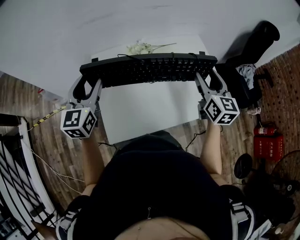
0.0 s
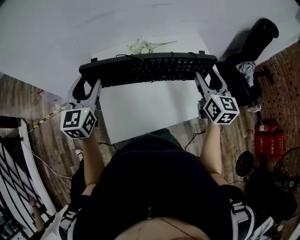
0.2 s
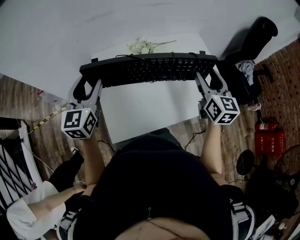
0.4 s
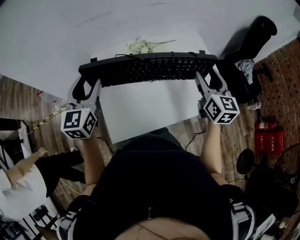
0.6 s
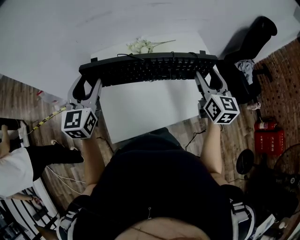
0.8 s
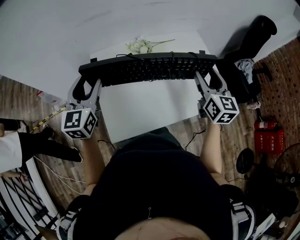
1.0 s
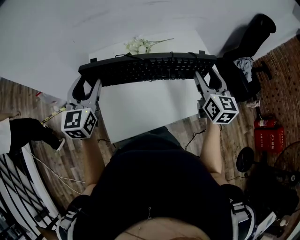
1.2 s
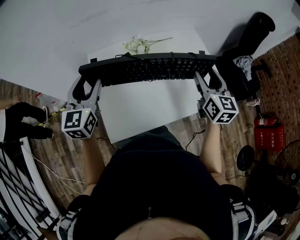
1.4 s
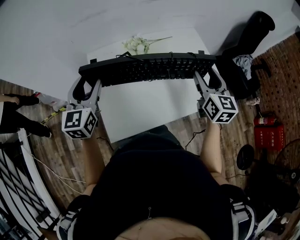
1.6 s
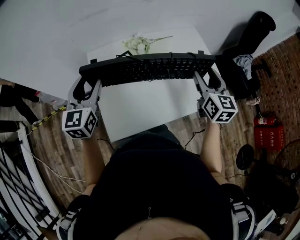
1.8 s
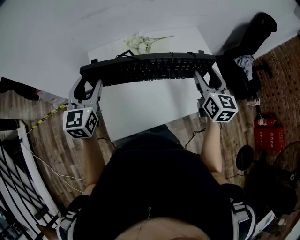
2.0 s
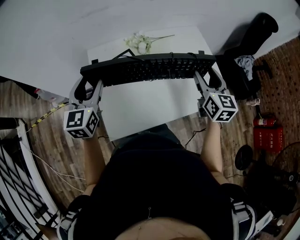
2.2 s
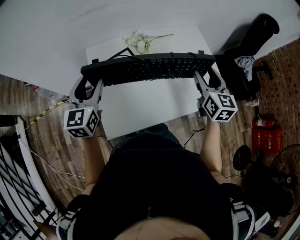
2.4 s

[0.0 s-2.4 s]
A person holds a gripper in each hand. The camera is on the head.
0.0 to 1.2 s: Both grippers stay about where they are.
1.2 to 2.4 s: The grippers make only small movements.

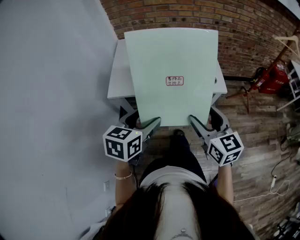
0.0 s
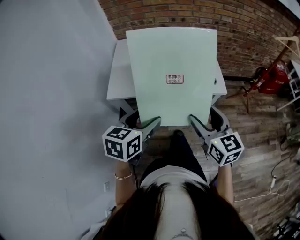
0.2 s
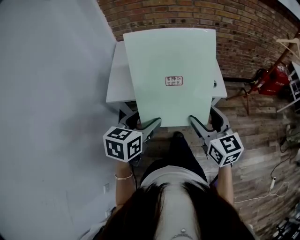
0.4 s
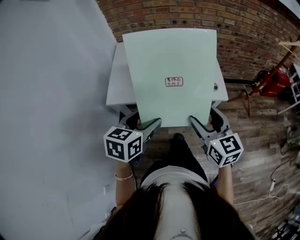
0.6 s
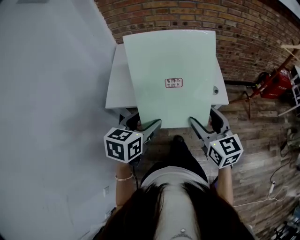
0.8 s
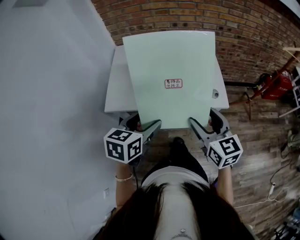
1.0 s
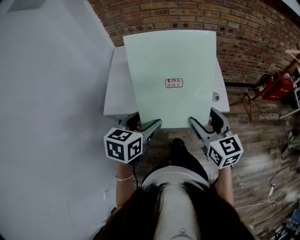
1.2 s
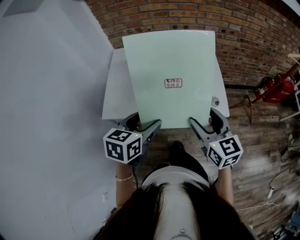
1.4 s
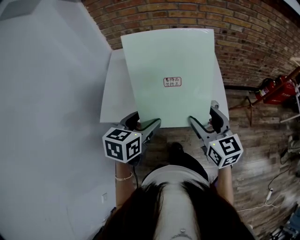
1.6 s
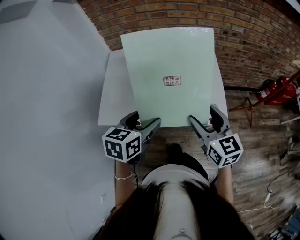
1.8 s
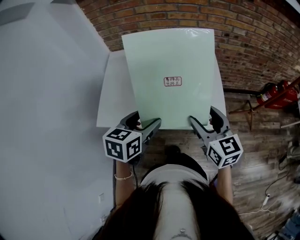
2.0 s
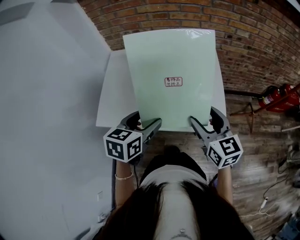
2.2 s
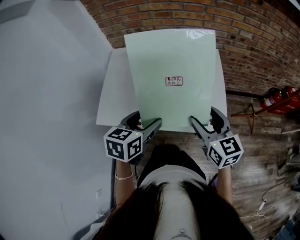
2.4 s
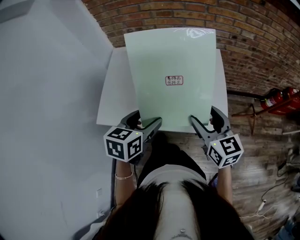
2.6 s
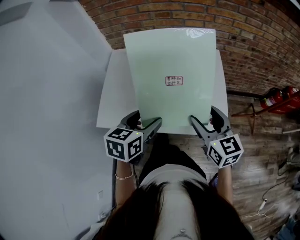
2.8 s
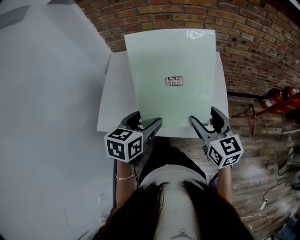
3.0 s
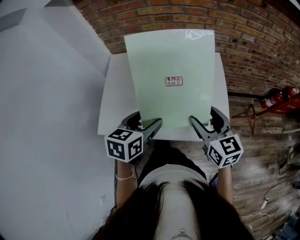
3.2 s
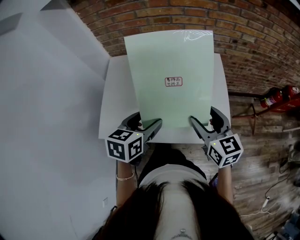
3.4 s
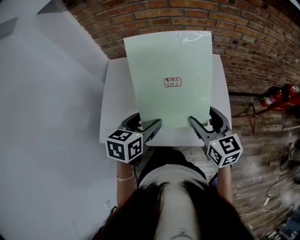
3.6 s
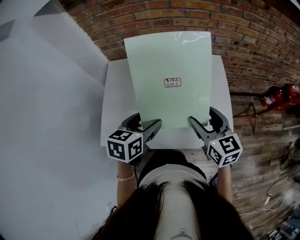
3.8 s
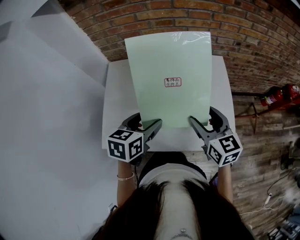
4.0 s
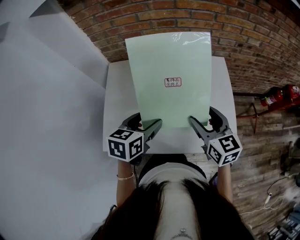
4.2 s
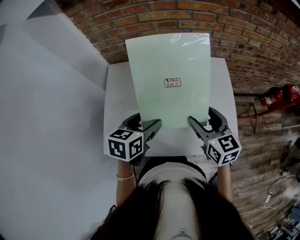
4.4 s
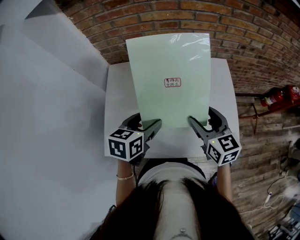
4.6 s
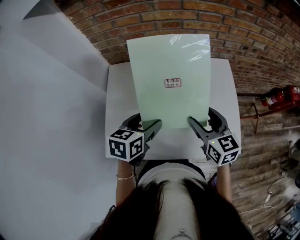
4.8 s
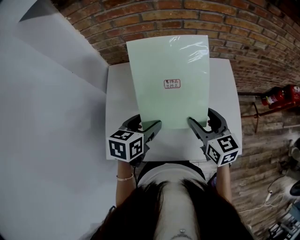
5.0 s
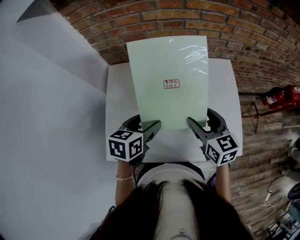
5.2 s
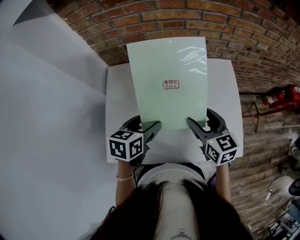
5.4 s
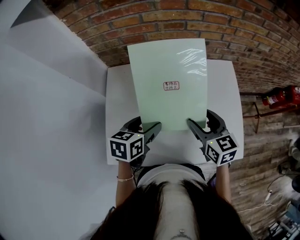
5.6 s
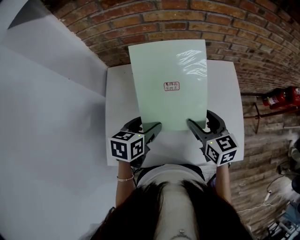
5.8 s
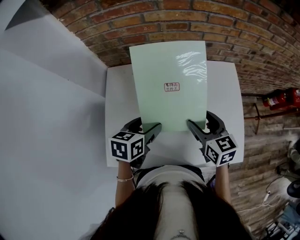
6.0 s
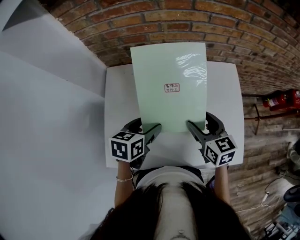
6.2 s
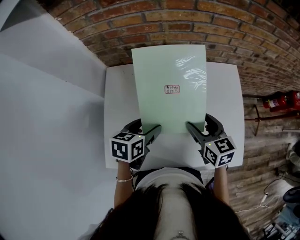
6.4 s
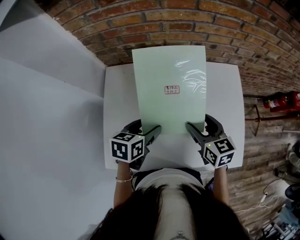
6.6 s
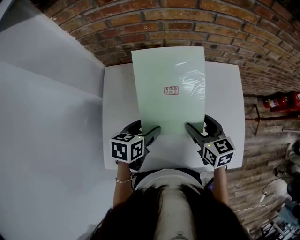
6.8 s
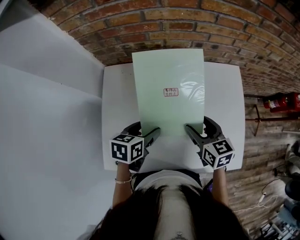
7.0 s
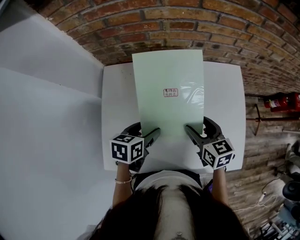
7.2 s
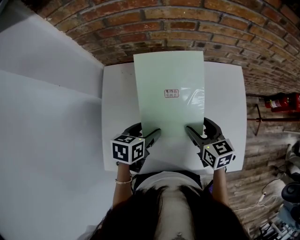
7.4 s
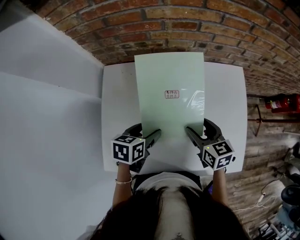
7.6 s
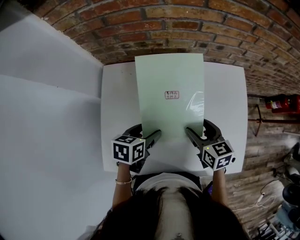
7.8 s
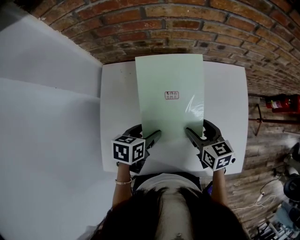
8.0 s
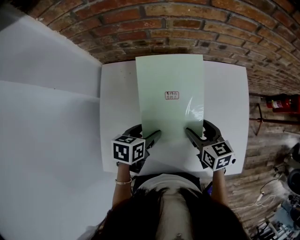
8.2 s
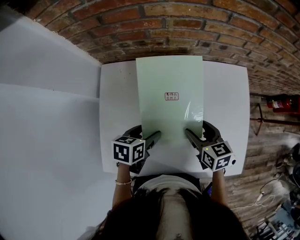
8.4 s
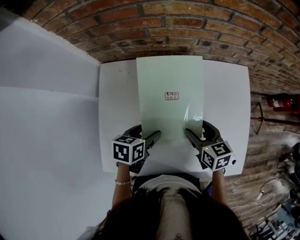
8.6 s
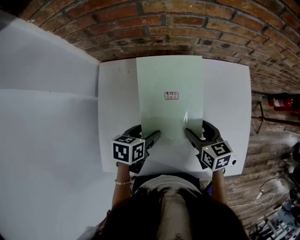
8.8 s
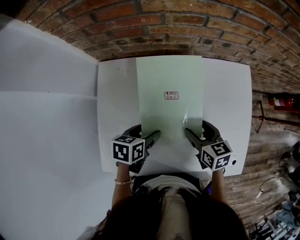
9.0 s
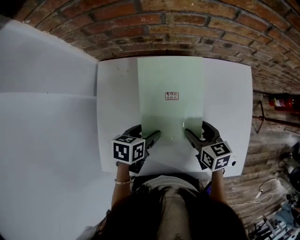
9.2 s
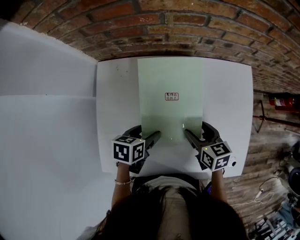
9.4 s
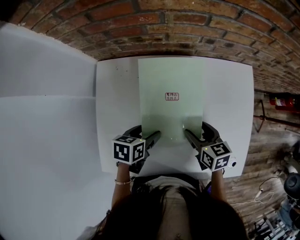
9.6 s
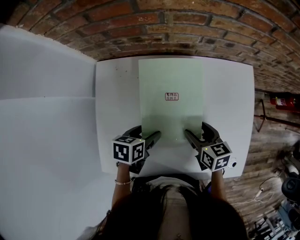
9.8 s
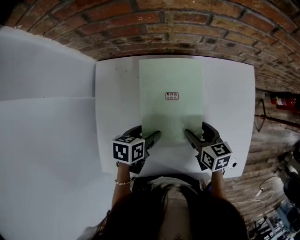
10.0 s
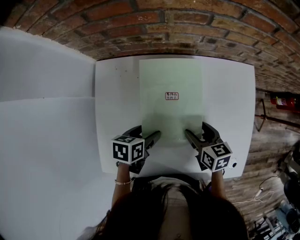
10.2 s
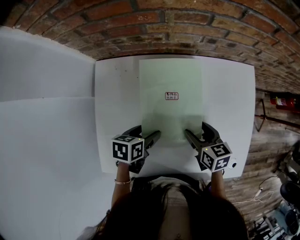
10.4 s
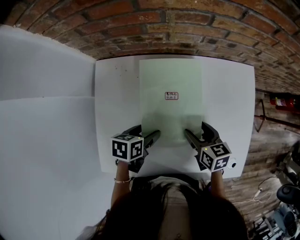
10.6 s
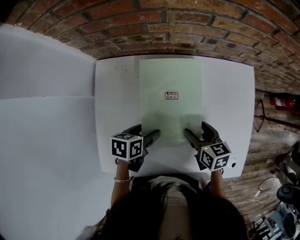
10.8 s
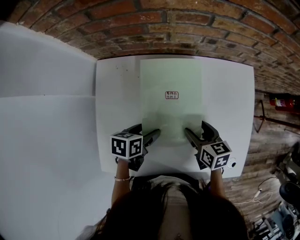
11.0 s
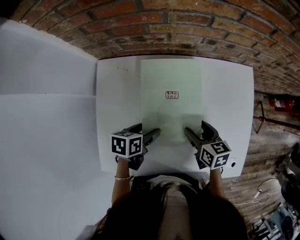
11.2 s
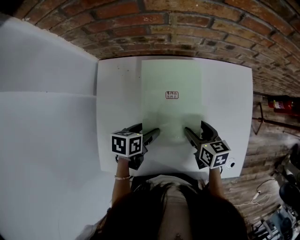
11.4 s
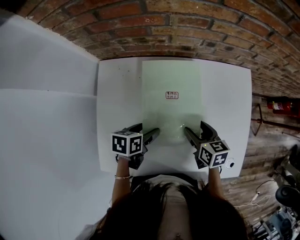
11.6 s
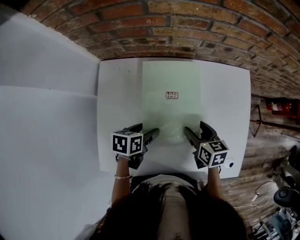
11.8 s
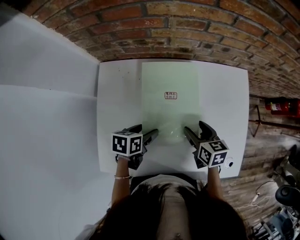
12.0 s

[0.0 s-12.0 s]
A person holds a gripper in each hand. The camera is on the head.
0.0 to 1.6 s: Both grippers move forward, roughly 20 cm.
1.6 to 3.0 s: Both grippers move forward, approximately 10 cm.
3.0 to 4.4 s: Both grippers travel together forward and to the left, approximately 15 cm.
4.4 to 6.0 s: Both grippers travel together forward and downward, approximately 10 cm.
6.0 to 7.6 s: The two grippers go roughly 5 cm downward.
7.6 to 9.0 s: The grippers stay close to where they were, moving slightly.
9.0 to 10.4 s: There are only small adjustments of the grippers.
10.4 to 12.0 s: Both grippers stay about where they are.

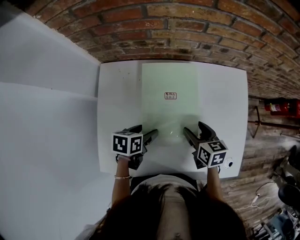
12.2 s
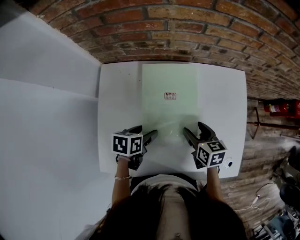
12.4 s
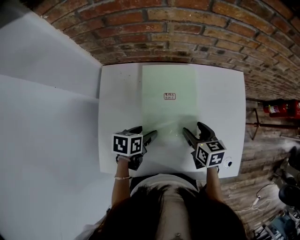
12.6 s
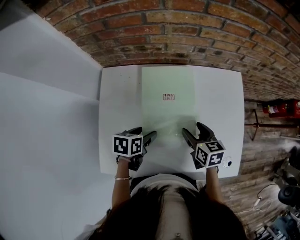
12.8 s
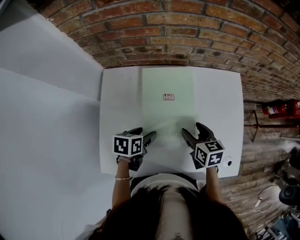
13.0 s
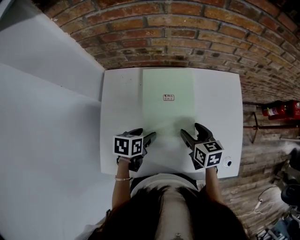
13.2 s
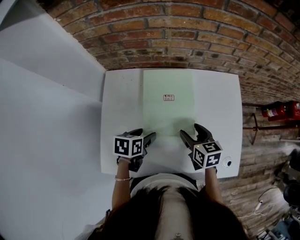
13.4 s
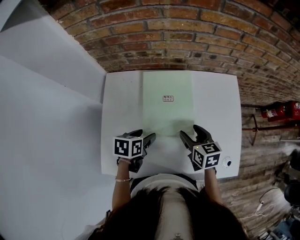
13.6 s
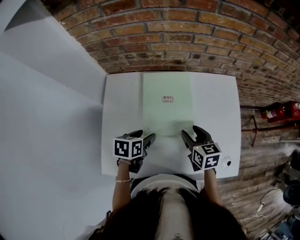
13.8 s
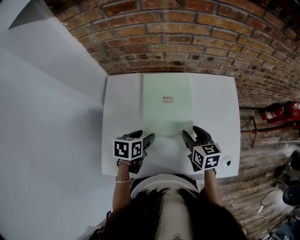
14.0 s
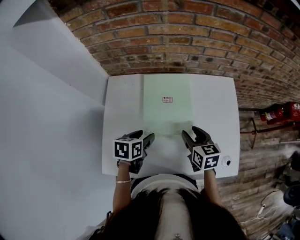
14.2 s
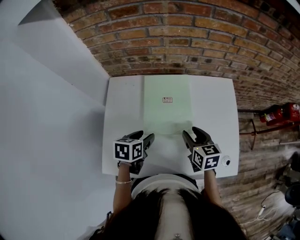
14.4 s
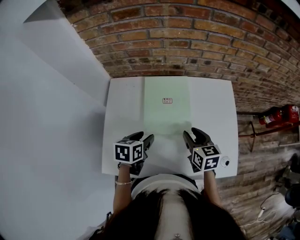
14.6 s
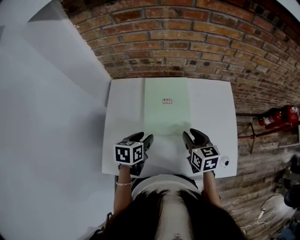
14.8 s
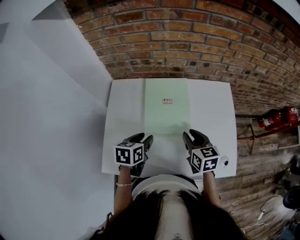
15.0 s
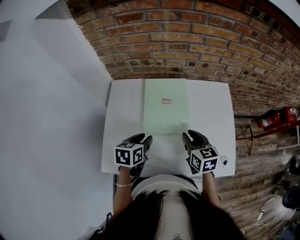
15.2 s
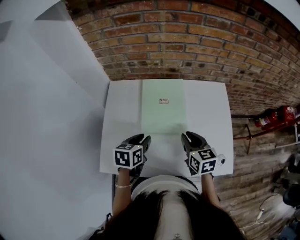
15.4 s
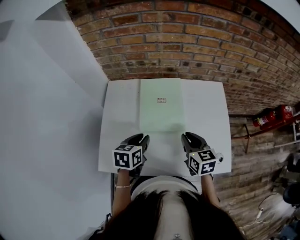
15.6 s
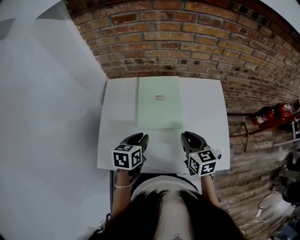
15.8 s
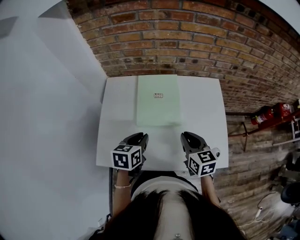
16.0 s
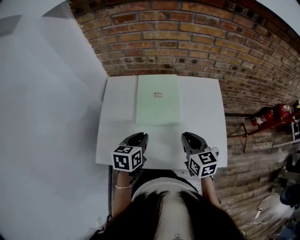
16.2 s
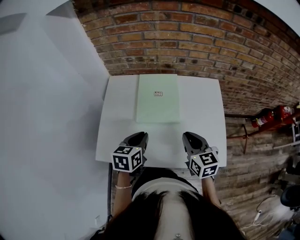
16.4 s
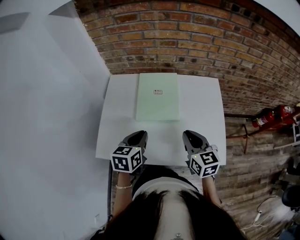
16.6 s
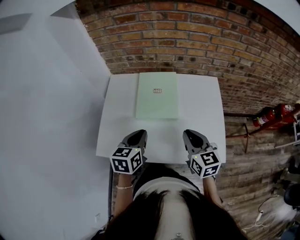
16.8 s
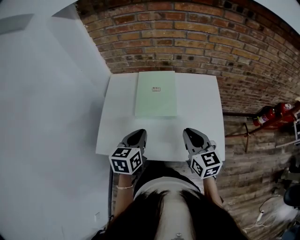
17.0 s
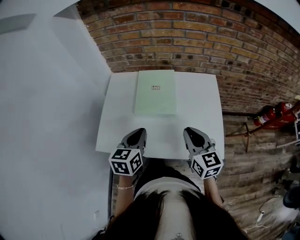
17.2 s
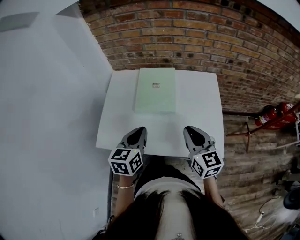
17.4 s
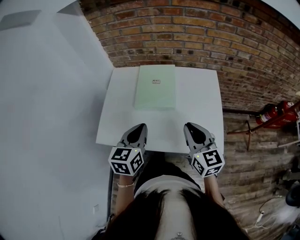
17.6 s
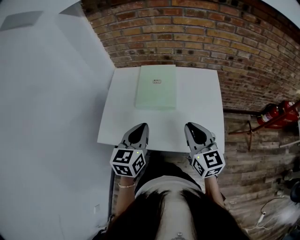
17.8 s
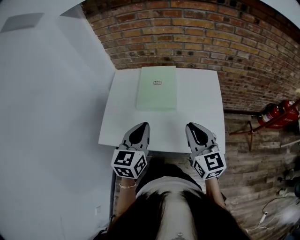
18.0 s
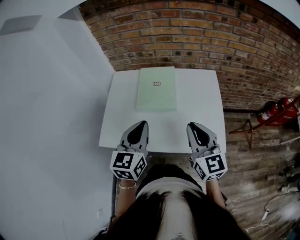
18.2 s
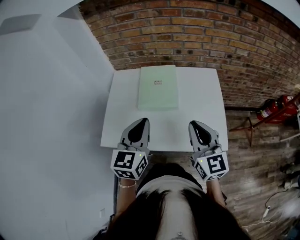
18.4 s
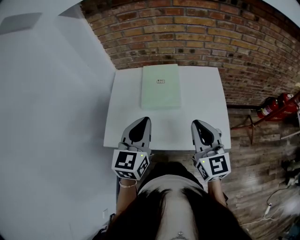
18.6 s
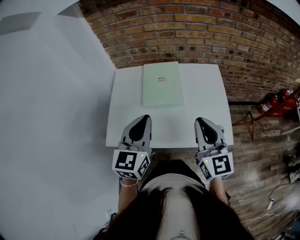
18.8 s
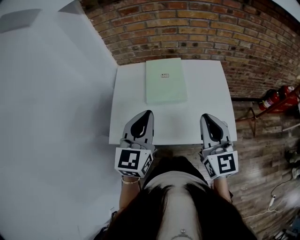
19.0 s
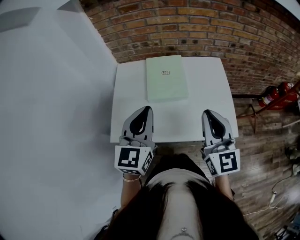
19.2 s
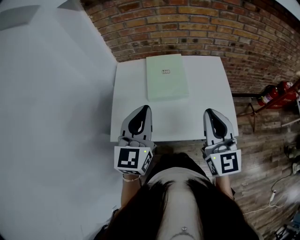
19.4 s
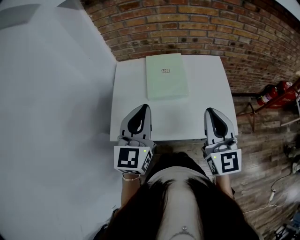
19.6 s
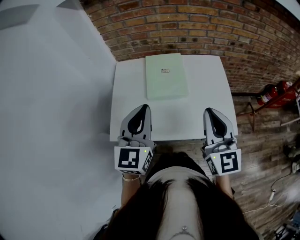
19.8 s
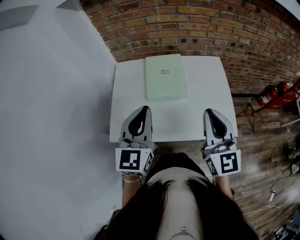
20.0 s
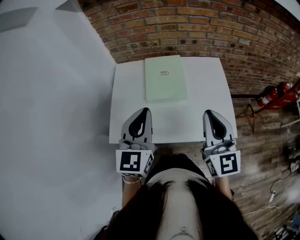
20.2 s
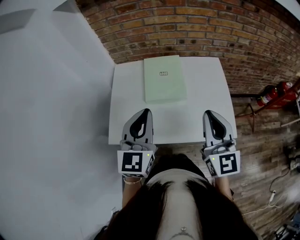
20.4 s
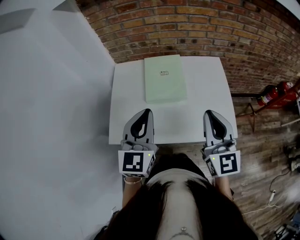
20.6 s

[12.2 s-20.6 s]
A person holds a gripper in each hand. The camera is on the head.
12.2 to 13.6 s: The grippers make only small movements.
13.6 to 15.0 s: The right gripper moves approximately 5 cm, and closes up. Meanwhile the left gripper changes place by some 5 cm.
15.0 to 16.4 s: Both grippers move backward and upward, about 10 cm. The left gripper closes its fingers.
16.4 to 17.8 s: The grippers both shift backward and upward by some 10 cm. The left gripper turns by approximately 20 degrees.
17.8 to 19.2 s: The right gripper travels upward by roughly 10 cm; the left gripper shifts roughly 10 cm upward and to the left.
19.2 to 20.6 s: Both grippers stay put.

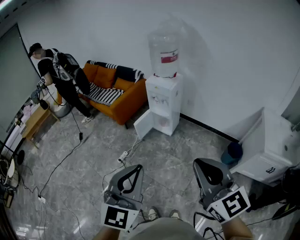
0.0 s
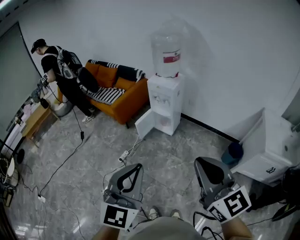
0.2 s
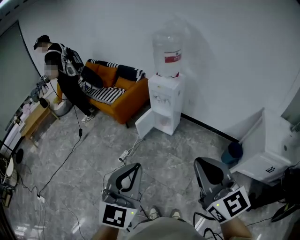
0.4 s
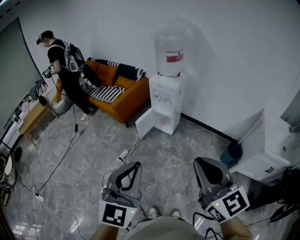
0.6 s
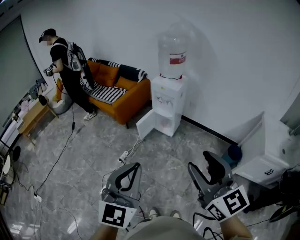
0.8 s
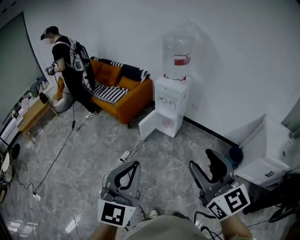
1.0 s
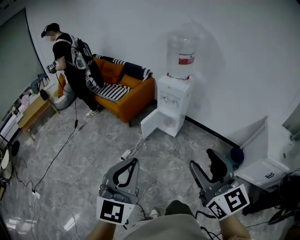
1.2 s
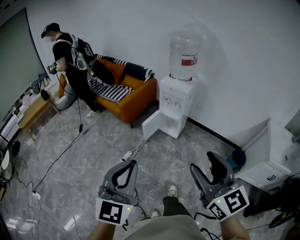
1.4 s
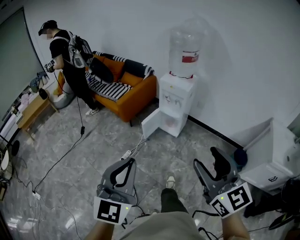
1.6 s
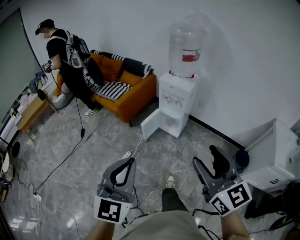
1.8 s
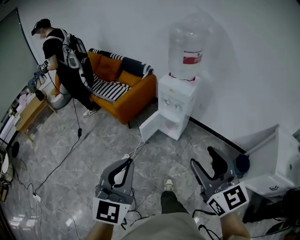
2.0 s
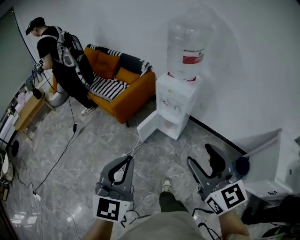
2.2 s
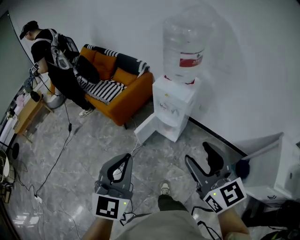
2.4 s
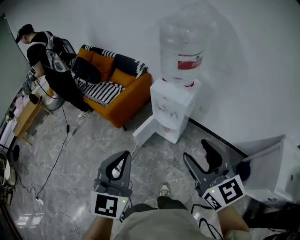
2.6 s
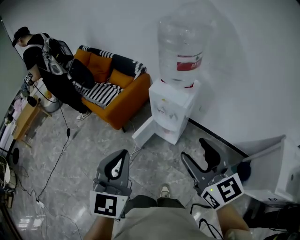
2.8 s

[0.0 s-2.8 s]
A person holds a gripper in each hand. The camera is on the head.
0.0 to 1.4 s: The two grippers go roughly 15 cm to the left. The right gripper opens up.
1.4 to 2.8 s: The two grippers go about 40 cm forward.
